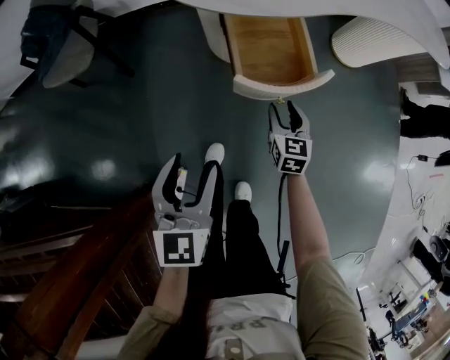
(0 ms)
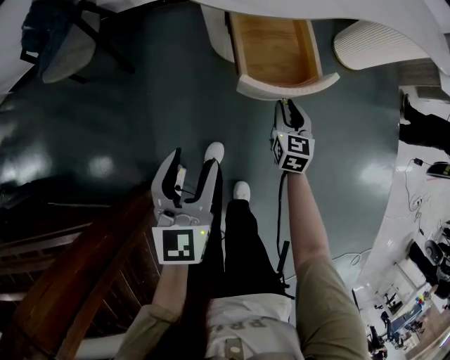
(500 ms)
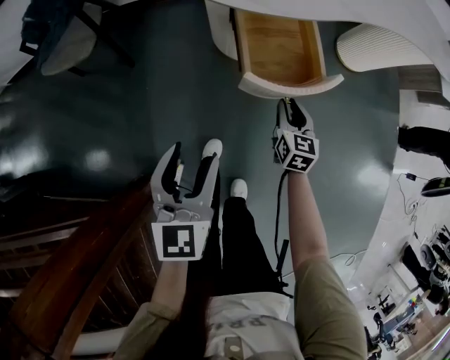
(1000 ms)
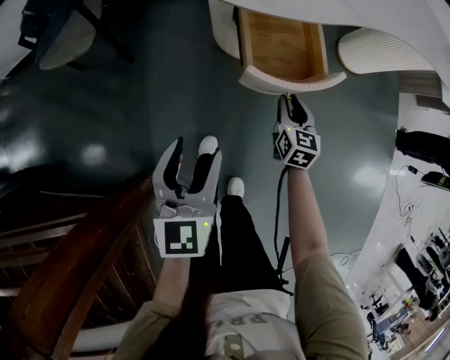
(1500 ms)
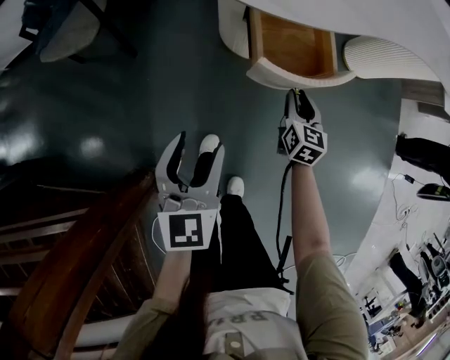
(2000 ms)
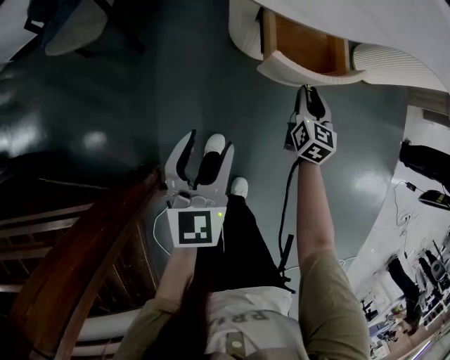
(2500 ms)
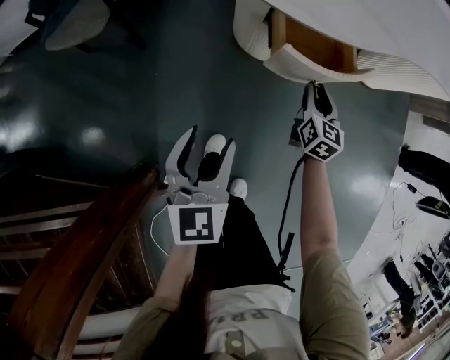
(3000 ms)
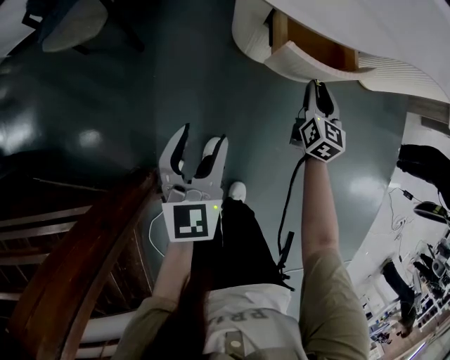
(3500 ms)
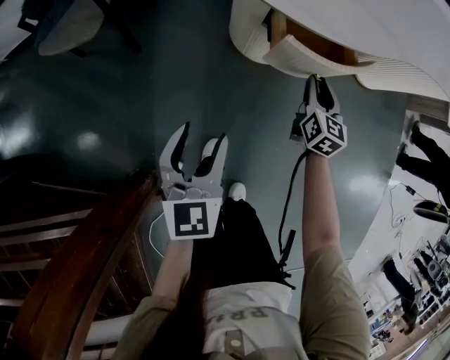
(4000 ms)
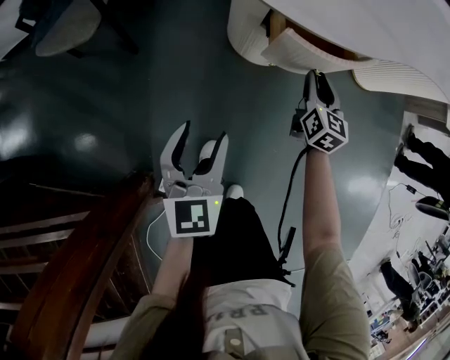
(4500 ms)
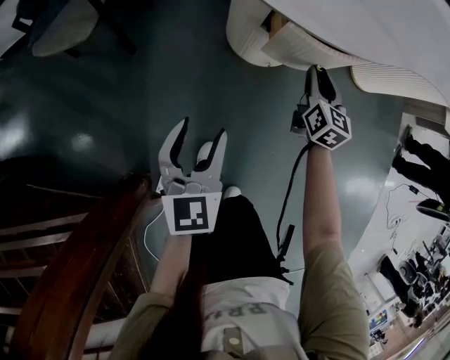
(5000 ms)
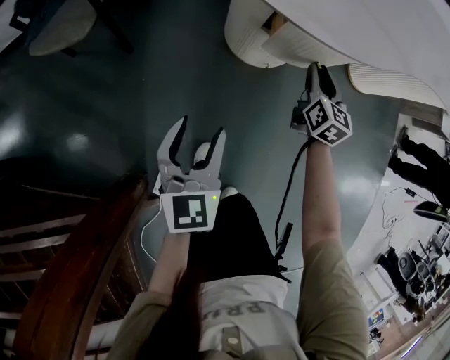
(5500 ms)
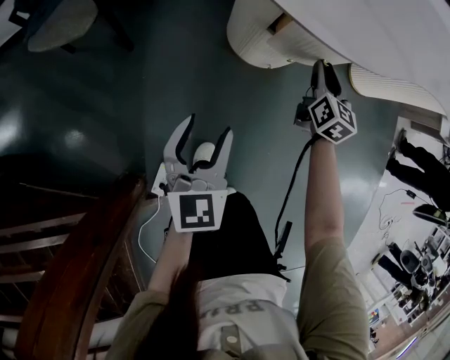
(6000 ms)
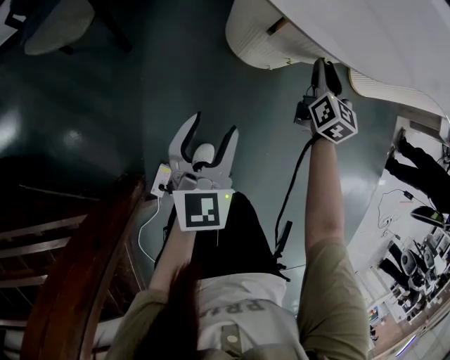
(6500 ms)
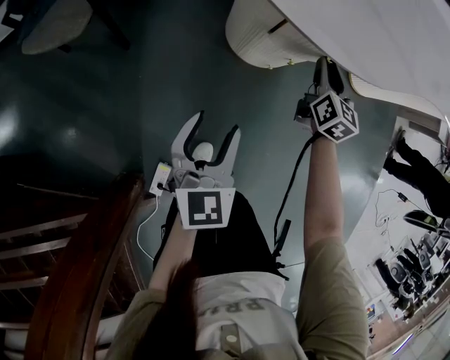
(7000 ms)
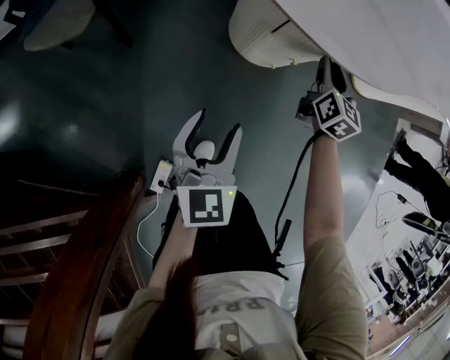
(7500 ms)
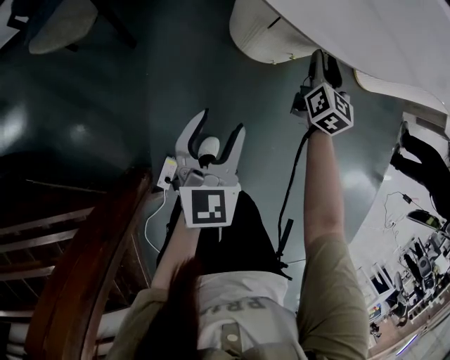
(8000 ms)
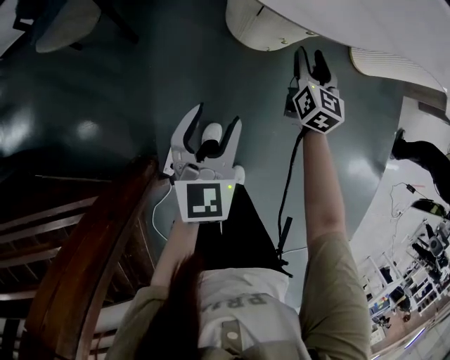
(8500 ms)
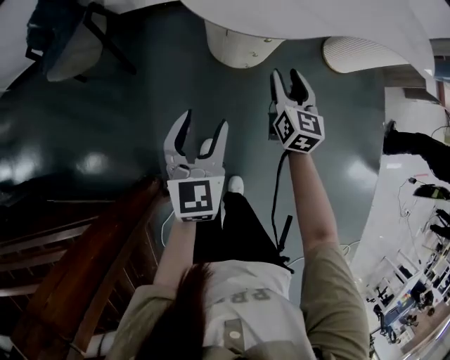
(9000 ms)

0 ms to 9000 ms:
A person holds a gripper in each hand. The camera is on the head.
0 ms to 2000 ms: The right gripper is displaced forward by approximately 5 cm; the left gripper changes place by approximately 5 cm.
2000 ms to 4500 ms: The right gripper heads forward, covering approximately 10 cm, while the left gripper travels downward and forward by roughly 10 cm.
4500 ms to 7000 ms: Both grippers travel together forward, roughly 5 cm.
7000 ms to 9000 ms: The grippers both shift upward and backward by about 20 cm.

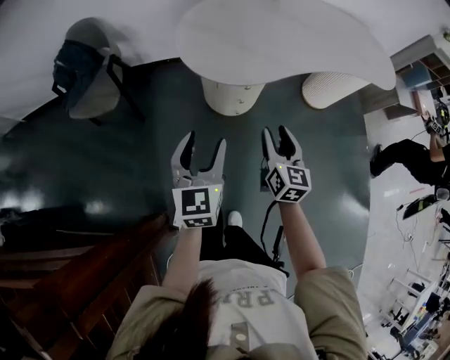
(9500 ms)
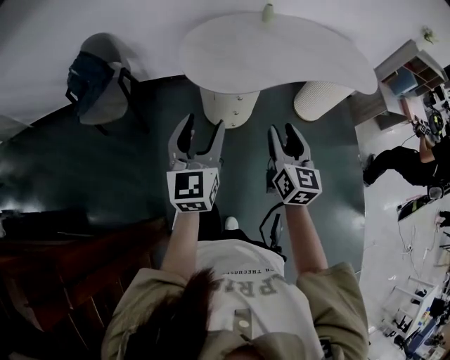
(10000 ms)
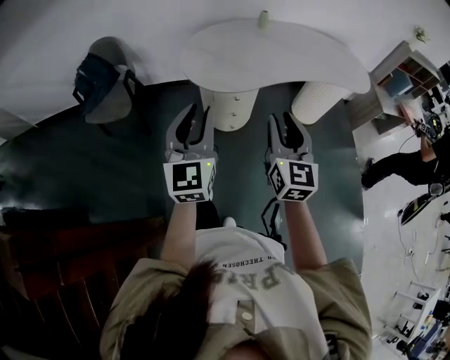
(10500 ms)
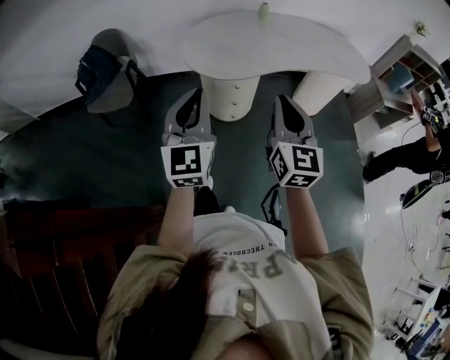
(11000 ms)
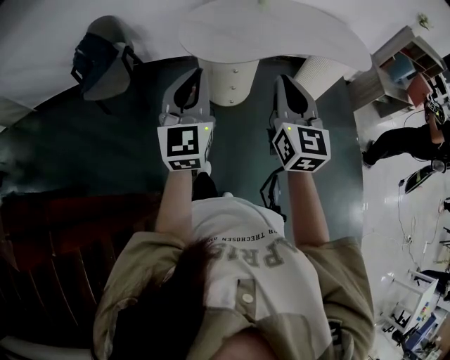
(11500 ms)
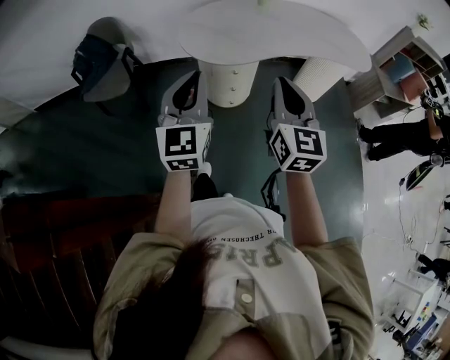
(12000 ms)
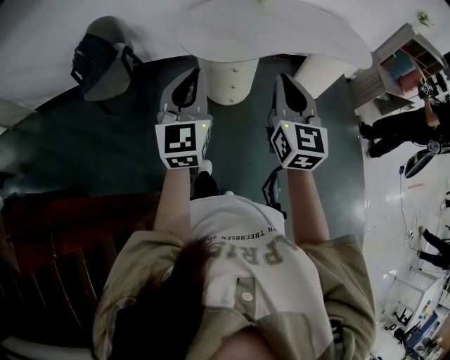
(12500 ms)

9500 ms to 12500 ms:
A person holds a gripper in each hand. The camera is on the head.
9500 ms to 11000 ms: Both grippers travel together upward and backward, about 25 cm. The left gripper swivels approximately 20 degrees, and closes; the right gripper rotates about 20 degrees, and closes up.
11000 ms to 12500 ms: The two grippers keep their place.

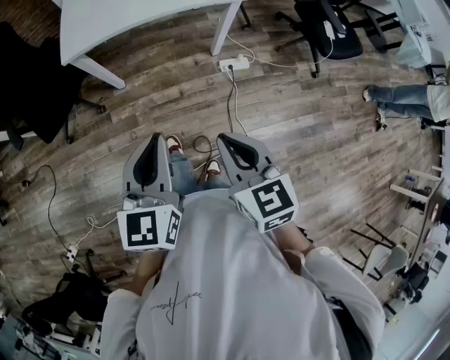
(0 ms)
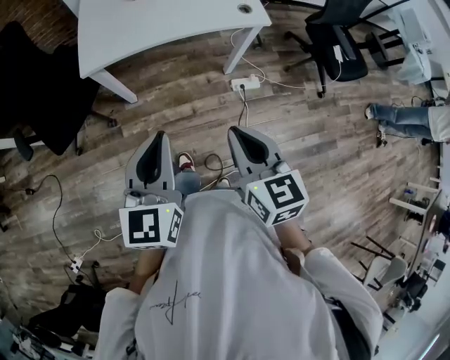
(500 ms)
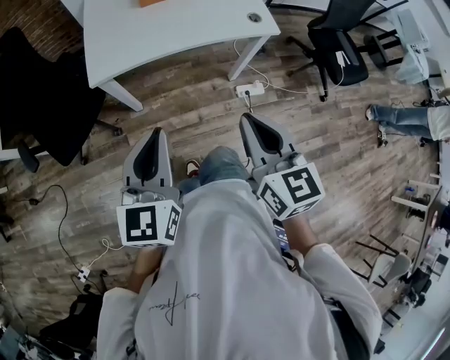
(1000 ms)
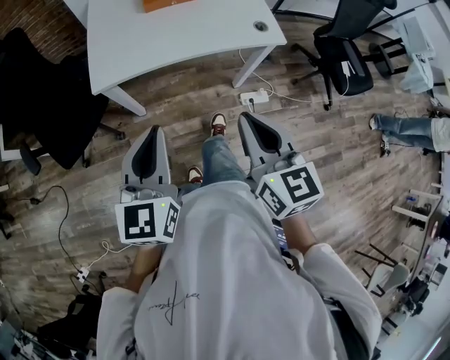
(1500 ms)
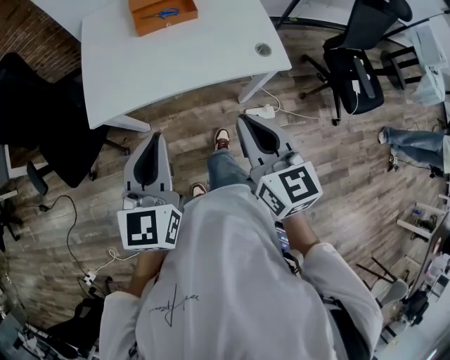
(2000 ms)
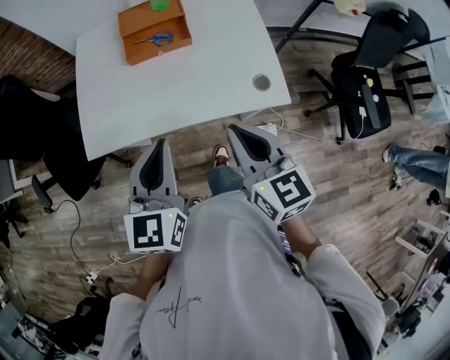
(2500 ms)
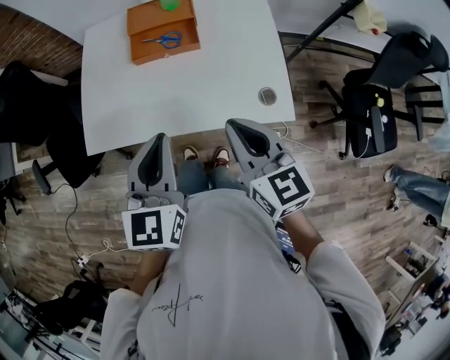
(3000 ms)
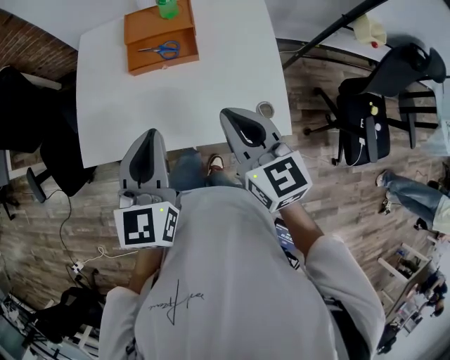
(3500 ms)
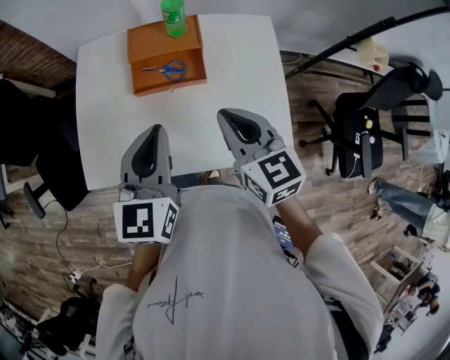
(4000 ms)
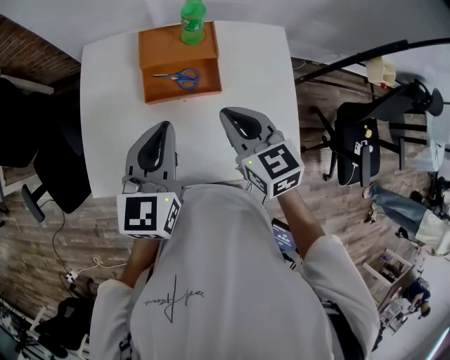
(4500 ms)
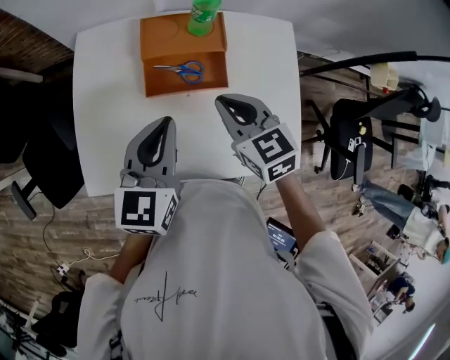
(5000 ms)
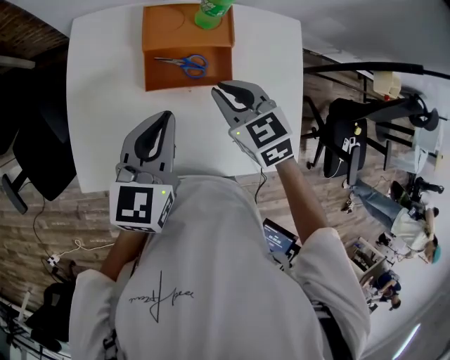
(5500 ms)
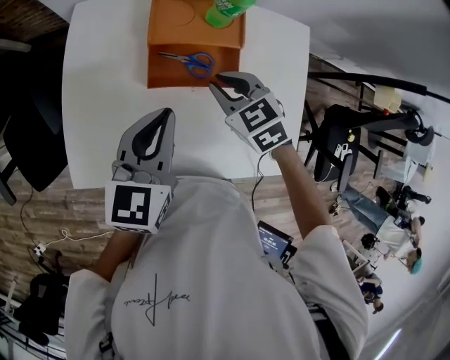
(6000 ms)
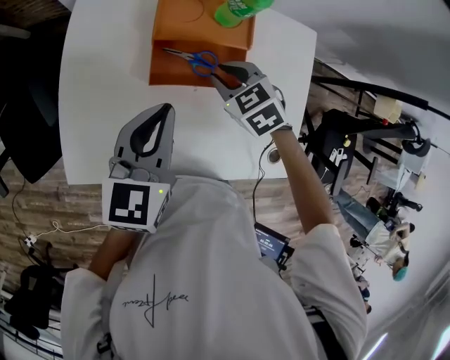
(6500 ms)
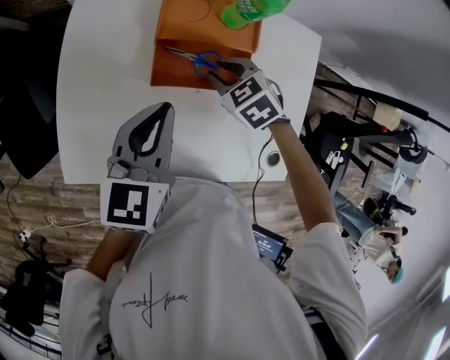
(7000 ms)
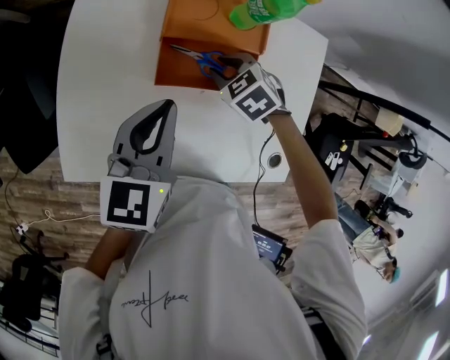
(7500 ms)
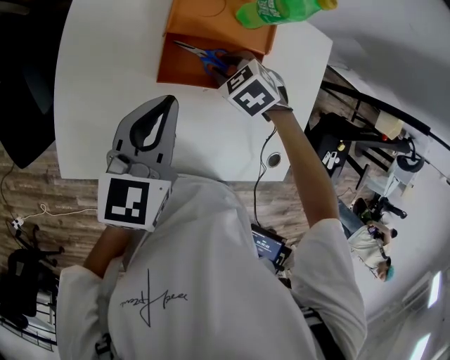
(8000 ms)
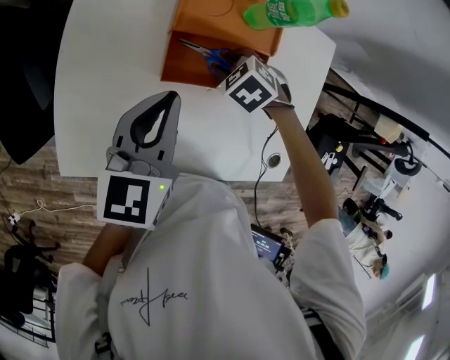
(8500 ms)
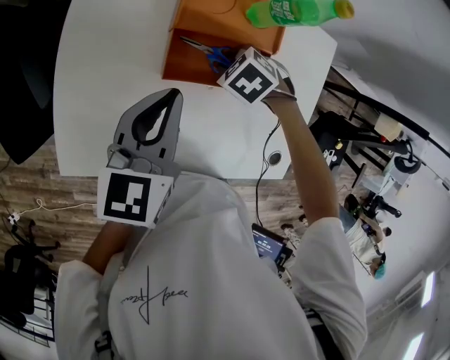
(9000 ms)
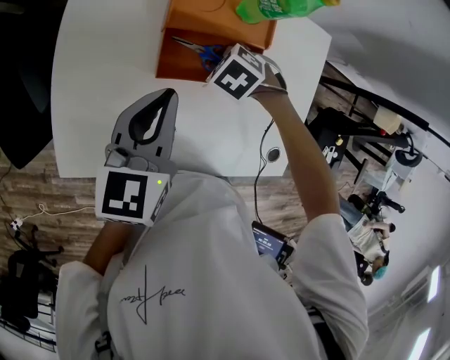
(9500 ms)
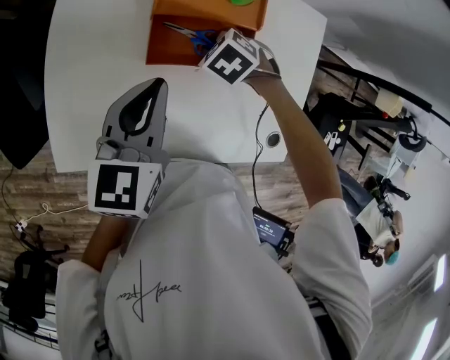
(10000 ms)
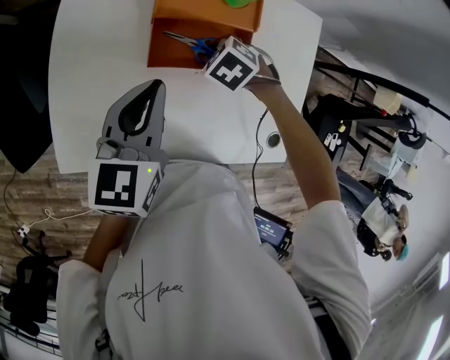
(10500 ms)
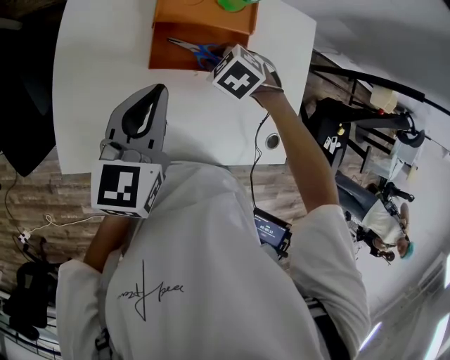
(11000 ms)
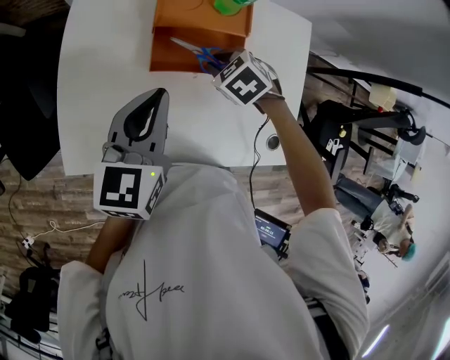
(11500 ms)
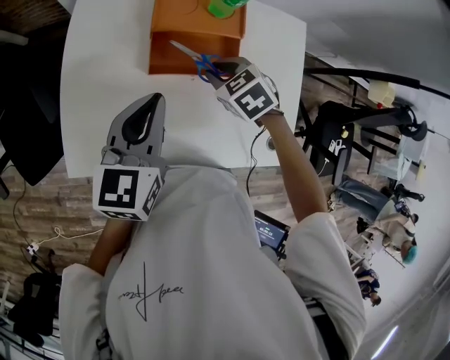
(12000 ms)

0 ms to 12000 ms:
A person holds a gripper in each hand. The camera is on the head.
0 ms to 2000 ms: Both grippers travel together forward, approximately 30 cm.
2000 ms to 4000 ms: Both grippers move forward, some 30 cm.
4000 ms to 6000 ms: The right gripper shifts approximately 20 cm forward, downward and to the left, and swivels approximately 40 degrees, while the left gripper moves forward, downward and to the left, approximately 15 cm.
6000 ms to 8000 ms: The left gripper changes place by some 5 cm, while the right gripper travels downward by some 10 cm, and rotates some 30 degrees.
8000 ms to 10000 ms: There are only small adjustments of the grippers.
10000 ms to 12000 ms: The right gripper is displaced upward by about 10 cm, and swivels roughly 20 degrees.

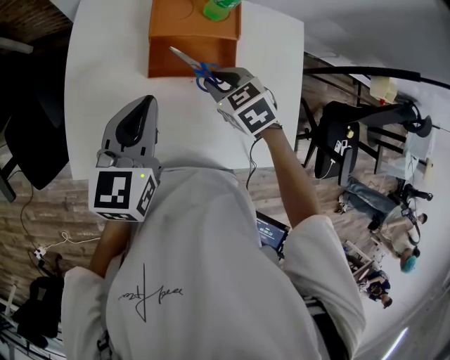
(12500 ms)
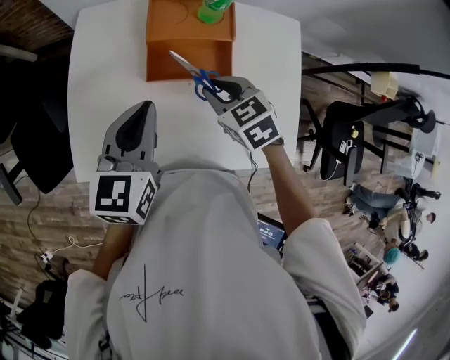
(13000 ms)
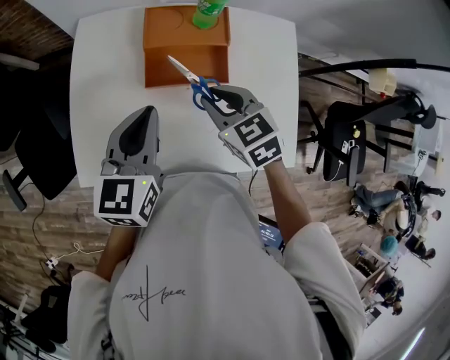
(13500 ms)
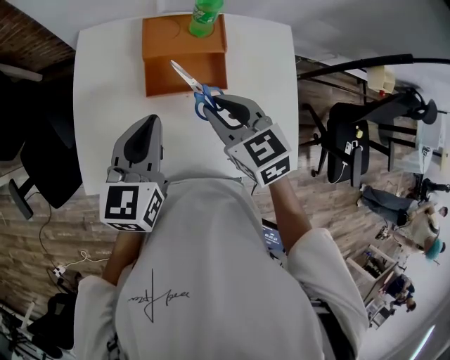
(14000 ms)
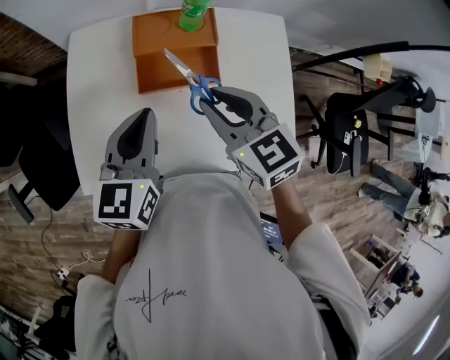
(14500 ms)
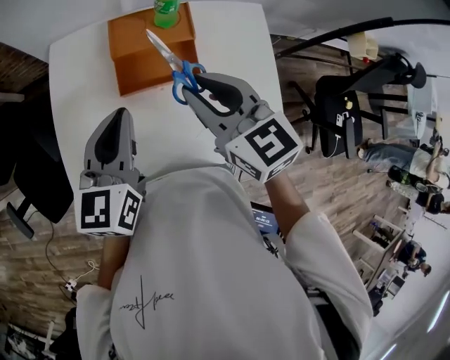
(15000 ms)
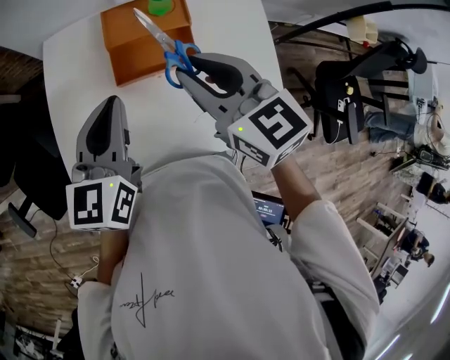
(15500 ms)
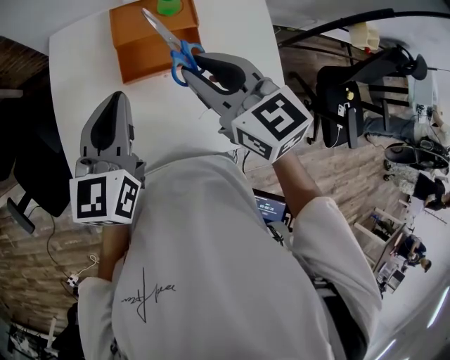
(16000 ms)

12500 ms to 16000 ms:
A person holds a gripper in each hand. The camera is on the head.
12500 ms to 14500 ms: The right gripper is displaced upward by approximately 15 cm, and changes its angle by about 30 degrees.
14500 ms to 16000 ms: The grippers stay close to where they were, moving slightly.
